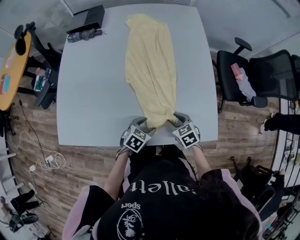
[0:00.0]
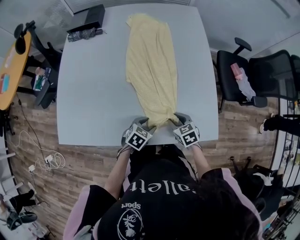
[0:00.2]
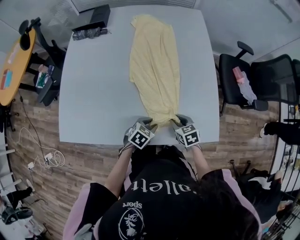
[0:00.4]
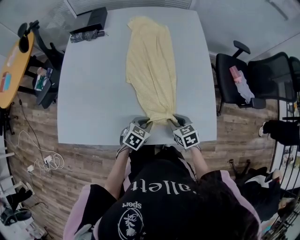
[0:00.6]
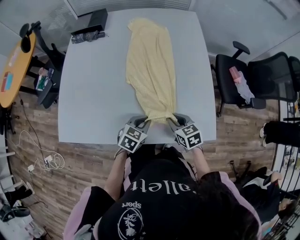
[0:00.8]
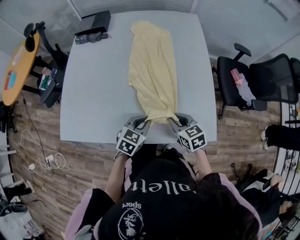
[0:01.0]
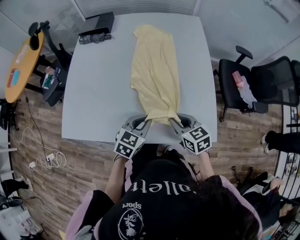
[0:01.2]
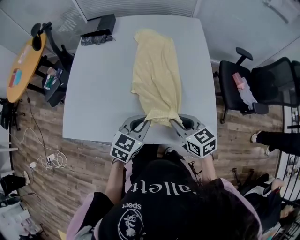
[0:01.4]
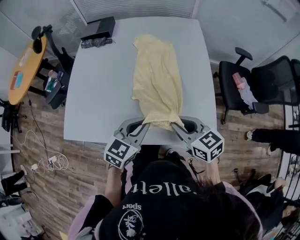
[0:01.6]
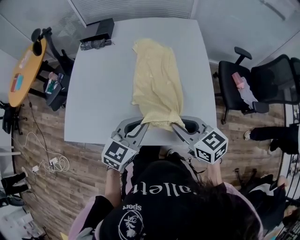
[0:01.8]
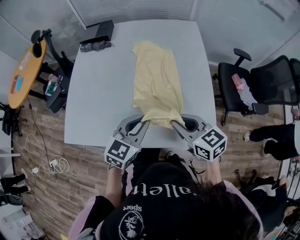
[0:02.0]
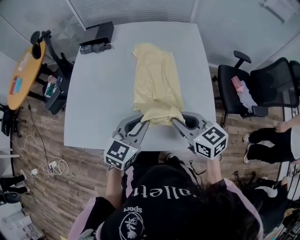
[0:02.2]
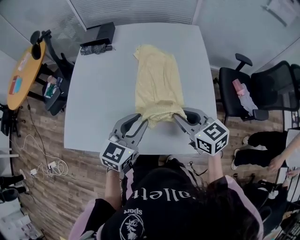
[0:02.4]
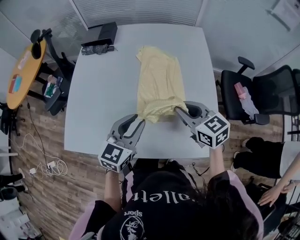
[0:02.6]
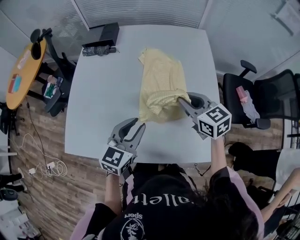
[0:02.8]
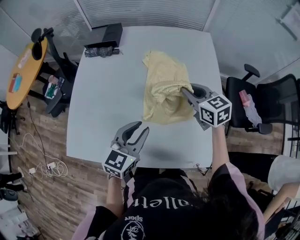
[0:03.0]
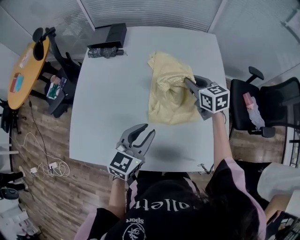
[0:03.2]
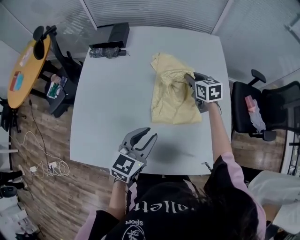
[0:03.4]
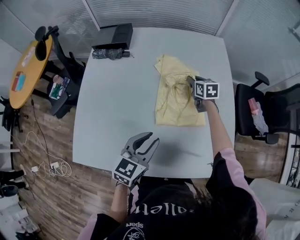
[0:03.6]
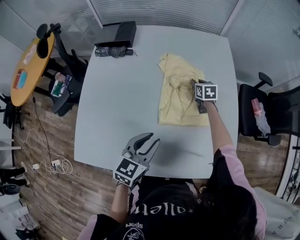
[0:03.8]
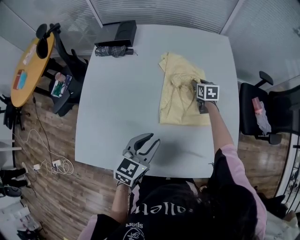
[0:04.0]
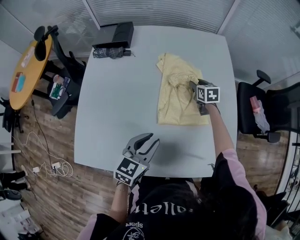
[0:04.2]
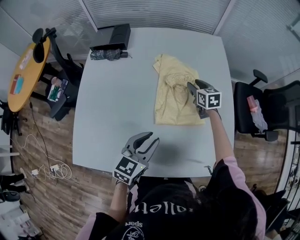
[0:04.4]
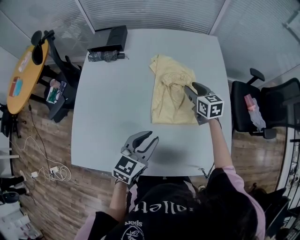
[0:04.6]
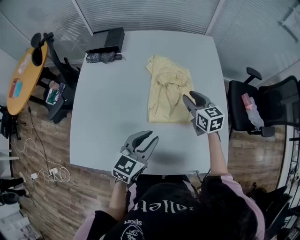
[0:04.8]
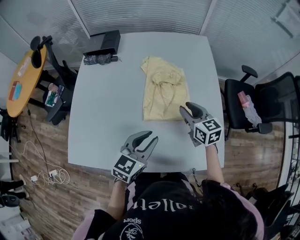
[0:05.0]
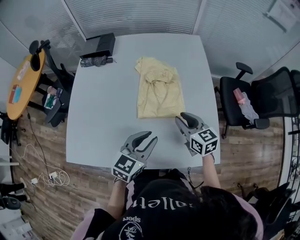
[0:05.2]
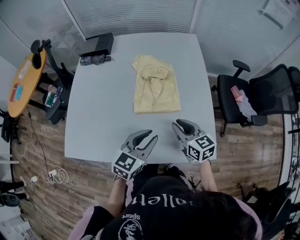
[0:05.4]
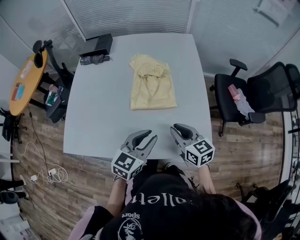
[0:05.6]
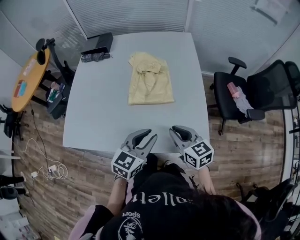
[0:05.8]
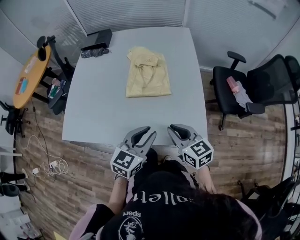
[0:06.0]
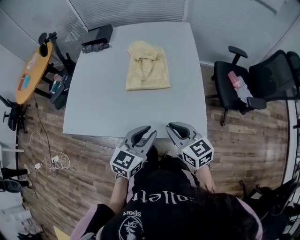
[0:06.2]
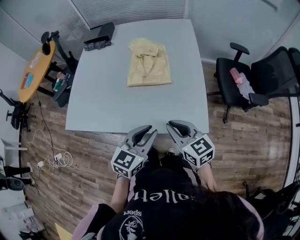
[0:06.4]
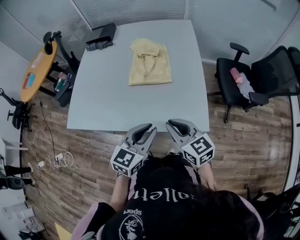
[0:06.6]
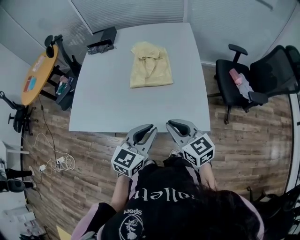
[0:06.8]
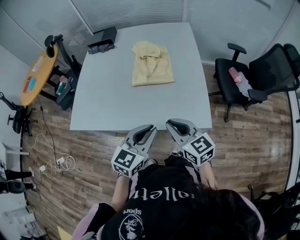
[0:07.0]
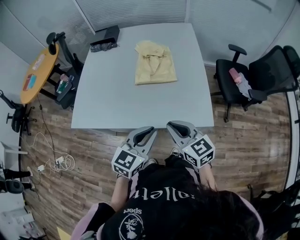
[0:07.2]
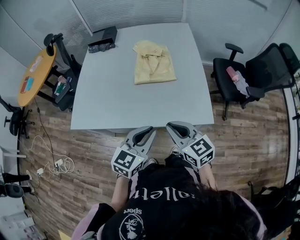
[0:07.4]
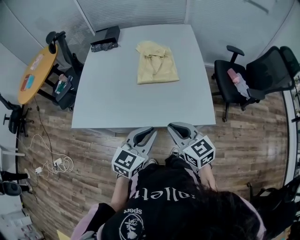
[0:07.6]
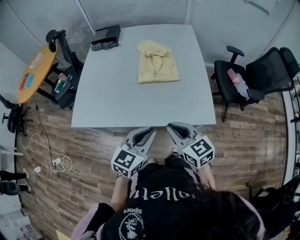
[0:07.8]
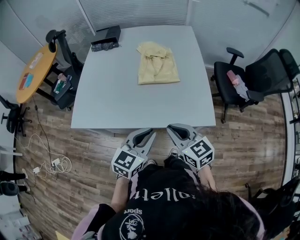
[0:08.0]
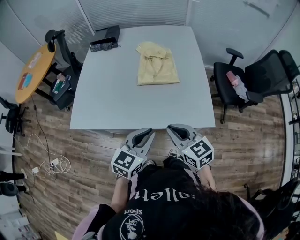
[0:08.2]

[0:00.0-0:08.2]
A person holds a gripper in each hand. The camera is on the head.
0:00.0 to 0:01.6: The grippers both shift upward by about 20 cm. The left gripper changes its angle by some 30 degrees, and closes. The right gripper rotates roughly 30 degrees, and closes.
0:01.6 to 0:03.2: The right gripper is displaced forward by roughly 30 cm. The left gripper goes approximately 15 cm forward and to the left.
0:03.2 to 0:05.0: The right gripper goes roughly 10 cm backward.
0:05.0 to 0:06.6: The left gripper shifts about 25 cm backward and to the right, while the right gripper moves backward, about 30 cm, and closes.
0:06.6 to 0:08.2: The two grippers go approximately 10 cm to the left.

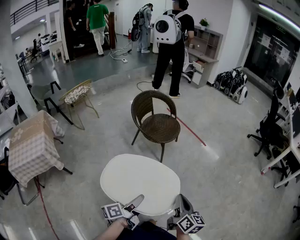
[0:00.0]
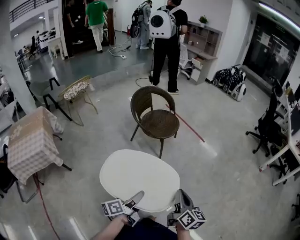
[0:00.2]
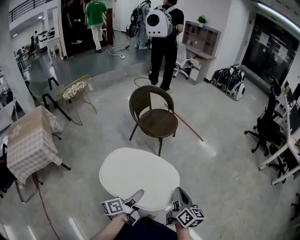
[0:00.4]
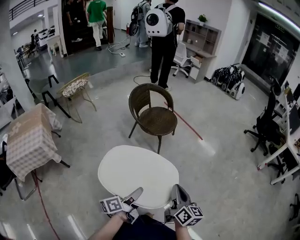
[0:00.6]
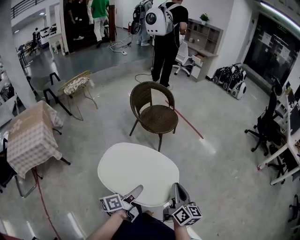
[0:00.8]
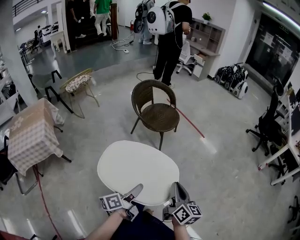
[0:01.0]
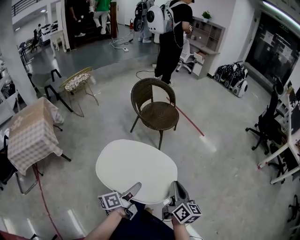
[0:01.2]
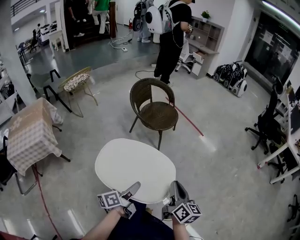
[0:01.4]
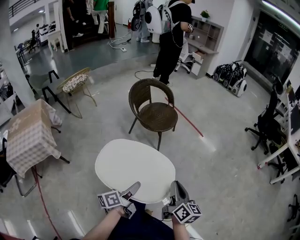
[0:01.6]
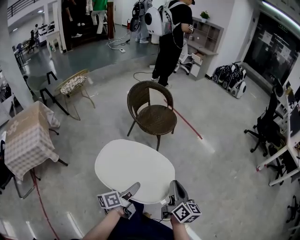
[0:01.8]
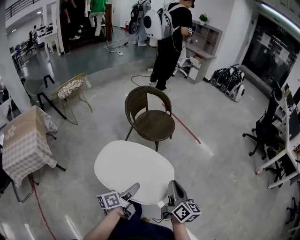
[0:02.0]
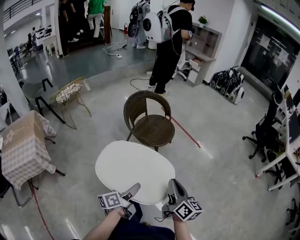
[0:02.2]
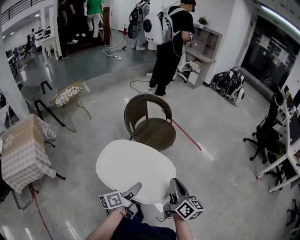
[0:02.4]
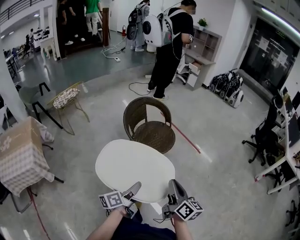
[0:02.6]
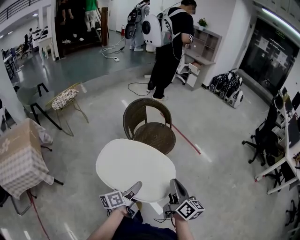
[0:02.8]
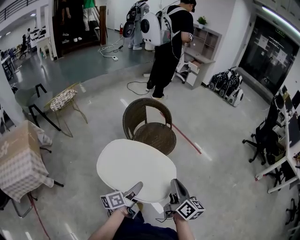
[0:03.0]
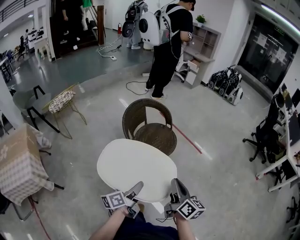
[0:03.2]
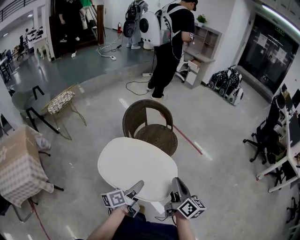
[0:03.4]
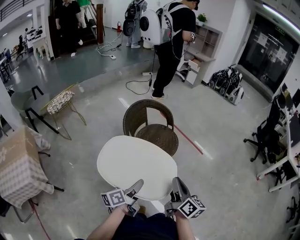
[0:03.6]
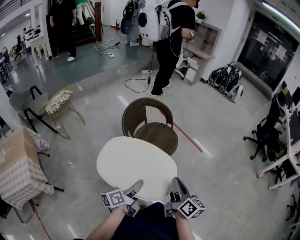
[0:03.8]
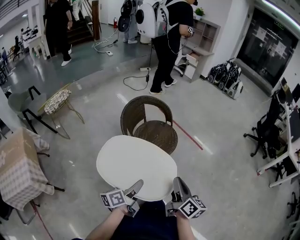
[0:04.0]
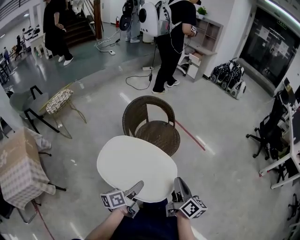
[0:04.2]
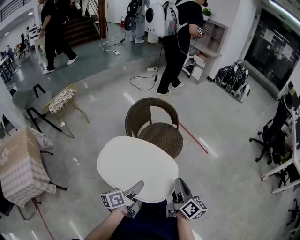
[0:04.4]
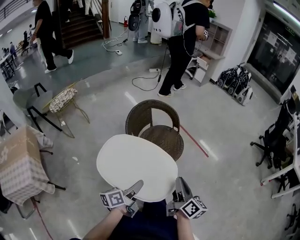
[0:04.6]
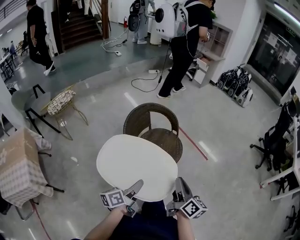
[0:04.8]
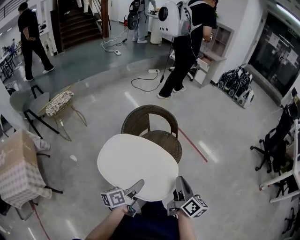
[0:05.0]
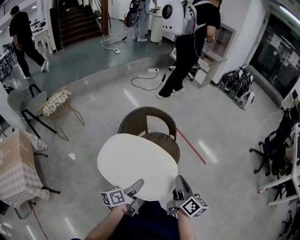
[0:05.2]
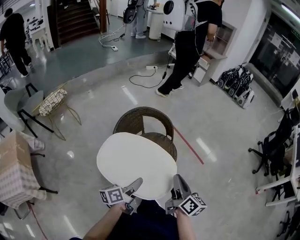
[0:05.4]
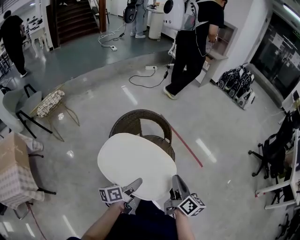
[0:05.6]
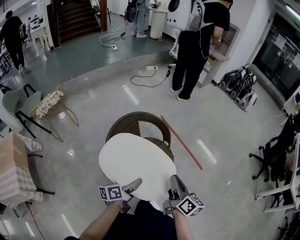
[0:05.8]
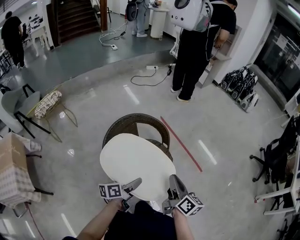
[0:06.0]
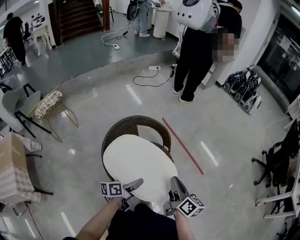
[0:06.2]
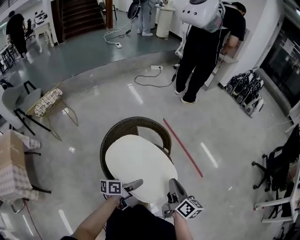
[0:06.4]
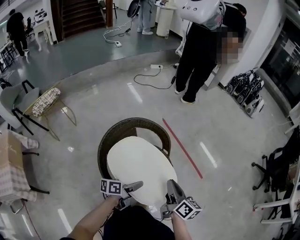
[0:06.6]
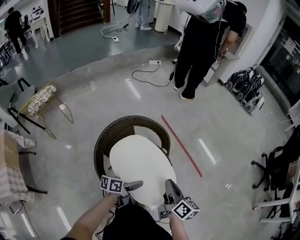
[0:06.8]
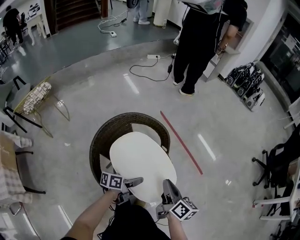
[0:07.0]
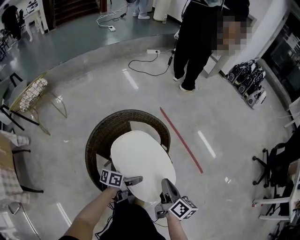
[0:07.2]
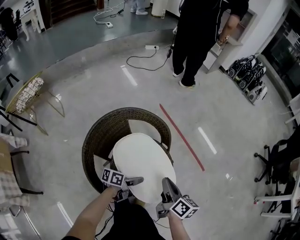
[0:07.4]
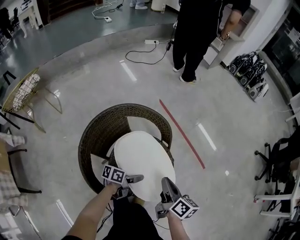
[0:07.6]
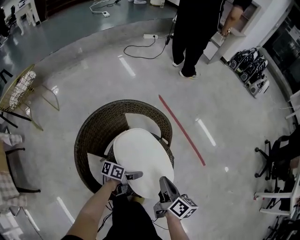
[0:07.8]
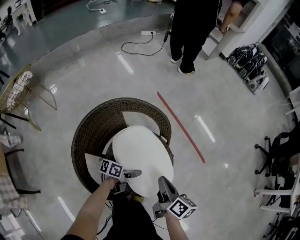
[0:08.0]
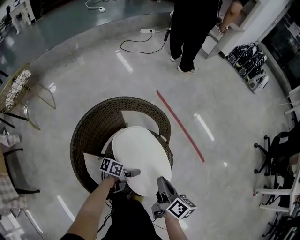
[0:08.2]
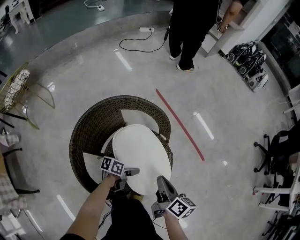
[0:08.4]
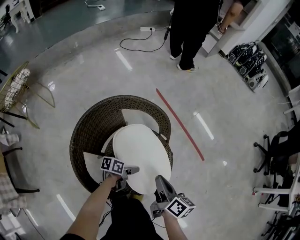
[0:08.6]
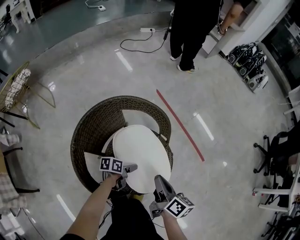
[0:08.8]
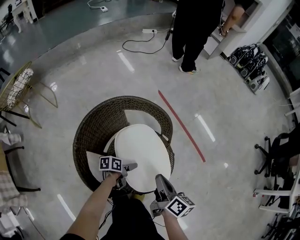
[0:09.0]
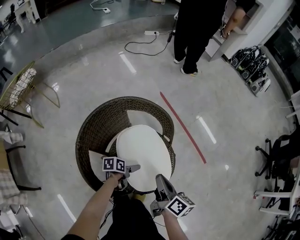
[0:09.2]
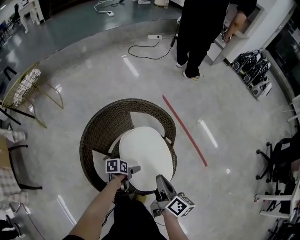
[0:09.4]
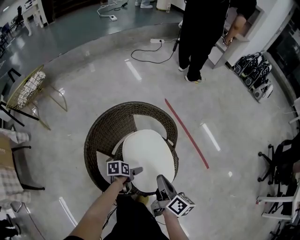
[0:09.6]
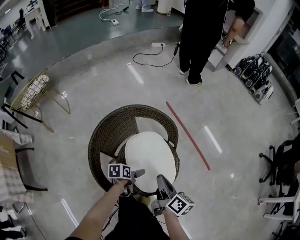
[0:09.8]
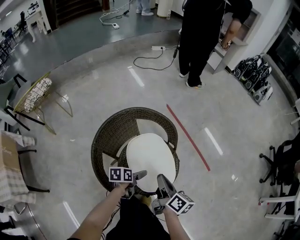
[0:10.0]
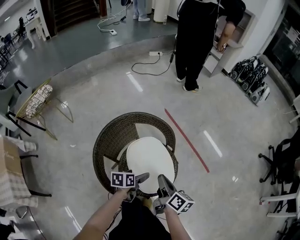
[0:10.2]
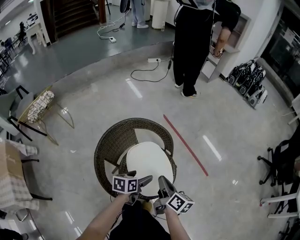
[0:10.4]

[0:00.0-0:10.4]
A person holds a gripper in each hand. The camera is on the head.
0:00.0 to 0:01.4: The grippers move only a little.
0:01.4 to 0:03.0: The grippers both shift forward by roughly 20 cm.
0:03.0 to 0:04.4: Both grippers move forward, approximately 5 cm.
0:04.4 to 0:06.0: The grippers both shift forward by approximately 25 cm.
0:06.0 to 0:07.4: The grippers both shift downward and forward by some 20 cm. The left gripper rotates roughly 30 degrees.
0:07.4 to 0:09.0: The left gripper goes about 10 cm downward and to the left, turns by approximately 20 degrees, and opens.
0:09.0 to 0:10.4: The left gripper travels upward by some 20 cm, turns by approximately 30 degrees, and opens up. Meanwhile the right gripper shifts some 5 cm upward.

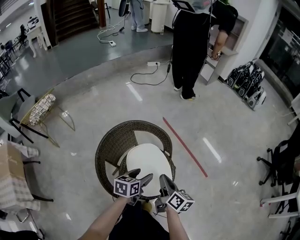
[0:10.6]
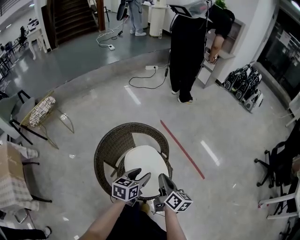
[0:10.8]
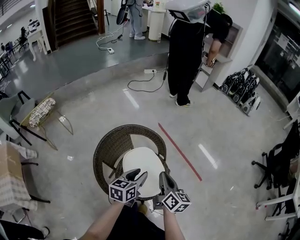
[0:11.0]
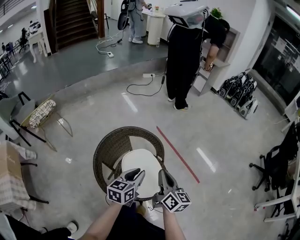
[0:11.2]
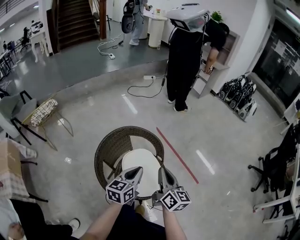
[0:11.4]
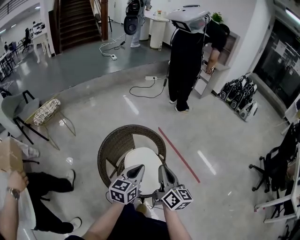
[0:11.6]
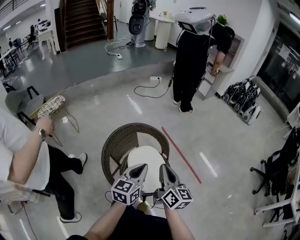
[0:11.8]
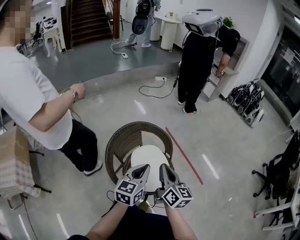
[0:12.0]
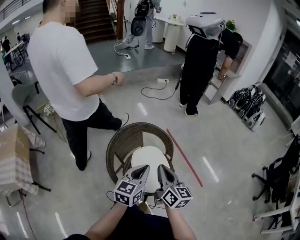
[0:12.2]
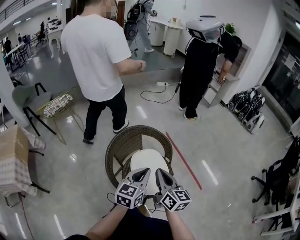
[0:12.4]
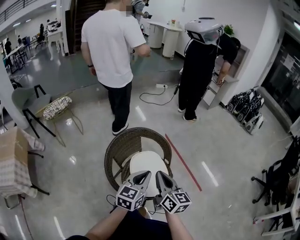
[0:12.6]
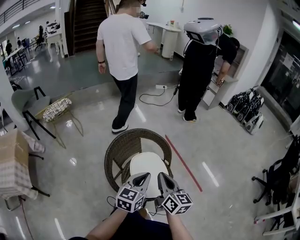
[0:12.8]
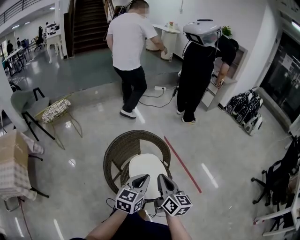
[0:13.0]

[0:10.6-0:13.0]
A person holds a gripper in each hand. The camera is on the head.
0:10.6 to 0:11.8: Both grippers travel together upward, about 15 cm. The left gripper changes its angle by roughly 30 degrees, and closes its fingers; the right gripper changes its angle by some 20 degrees.
0:11.8 to 0:13.0: The grippers move only a little.

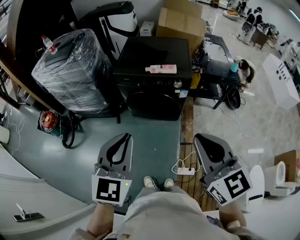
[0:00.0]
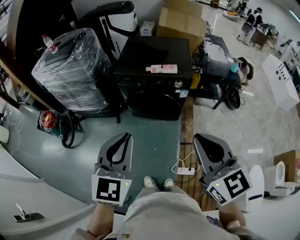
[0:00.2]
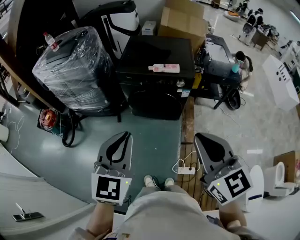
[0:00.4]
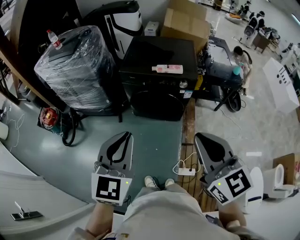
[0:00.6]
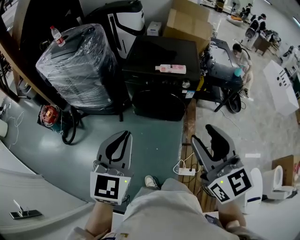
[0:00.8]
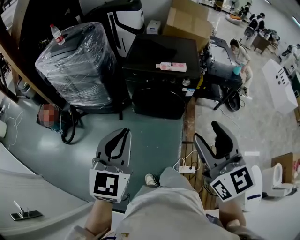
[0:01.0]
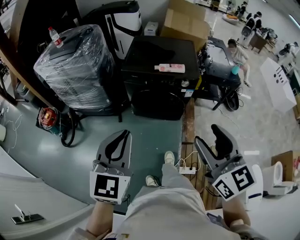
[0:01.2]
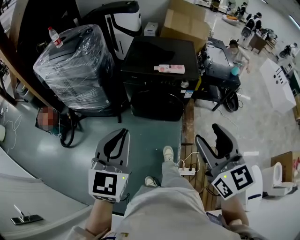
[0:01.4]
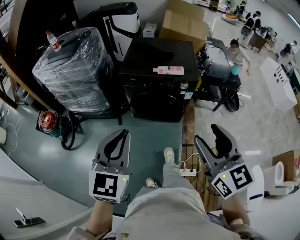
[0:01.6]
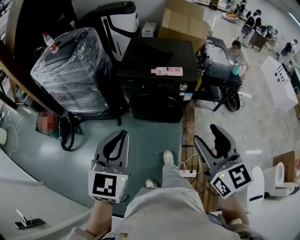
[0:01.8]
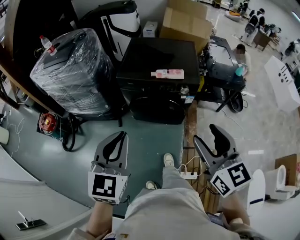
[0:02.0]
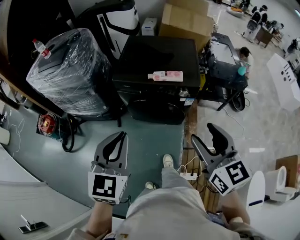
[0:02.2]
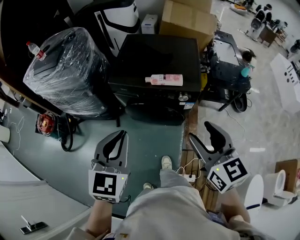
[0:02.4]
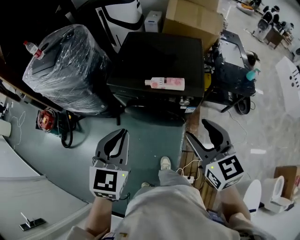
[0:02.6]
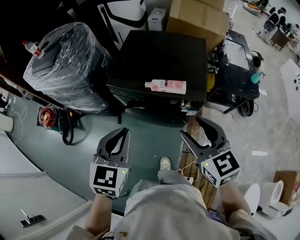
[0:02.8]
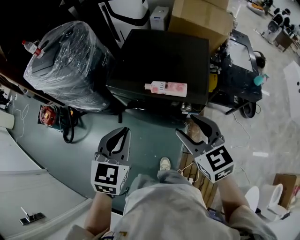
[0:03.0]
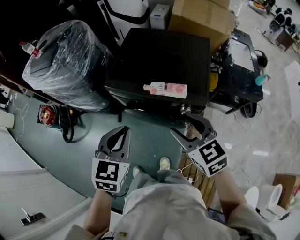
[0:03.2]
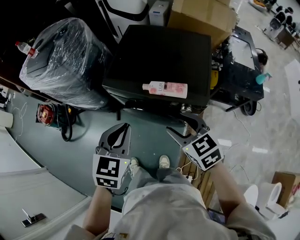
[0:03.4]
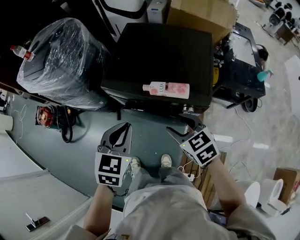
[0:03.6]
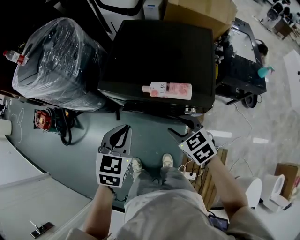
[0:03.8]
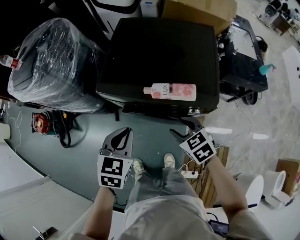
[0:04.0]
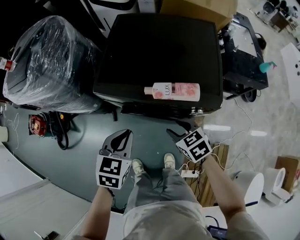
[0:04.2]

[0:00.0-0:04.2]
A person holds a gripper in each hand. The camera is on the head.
0:00.0 to 0:01.4: The right gripper opens up. Meanwhile the left gripper goes approximately 10 cm to the left.
0:01.4 to 0:02.8: The right gripper moves forward, approximately 30 cm, and turns by roughly 20 degrees; the left gripper shifts roughly 30 cm forward and to the right.
0:02.8 to 0:04.2: The grippers both shift downward and forward by some 25 cm. The left gripper swivels about 20 degrees, while the right gripper turns by approximately 30 degrees.
